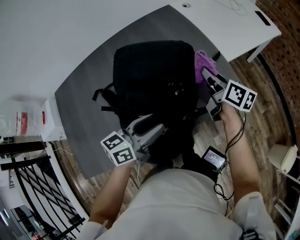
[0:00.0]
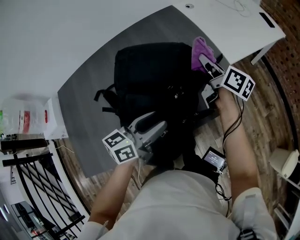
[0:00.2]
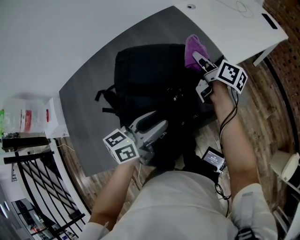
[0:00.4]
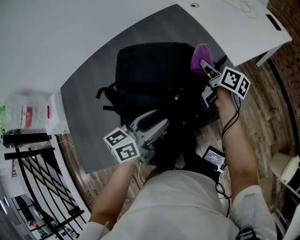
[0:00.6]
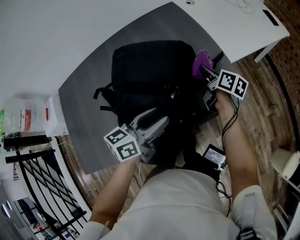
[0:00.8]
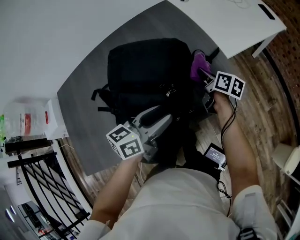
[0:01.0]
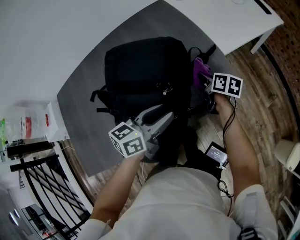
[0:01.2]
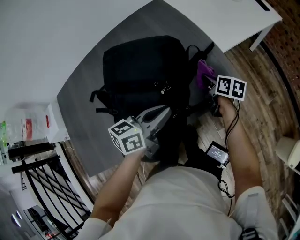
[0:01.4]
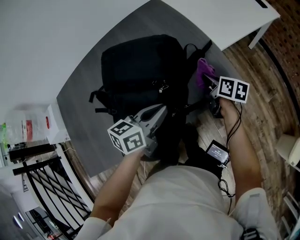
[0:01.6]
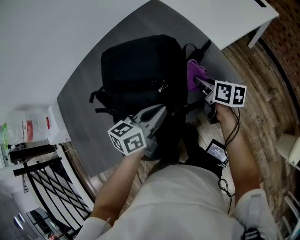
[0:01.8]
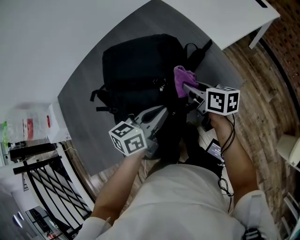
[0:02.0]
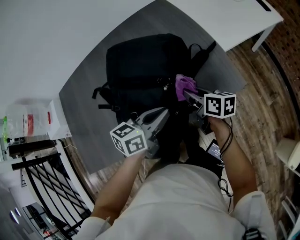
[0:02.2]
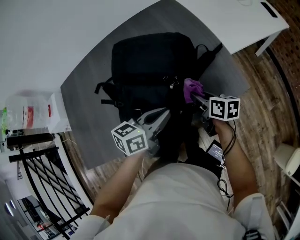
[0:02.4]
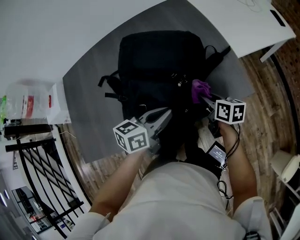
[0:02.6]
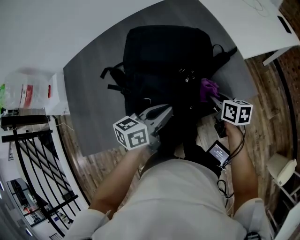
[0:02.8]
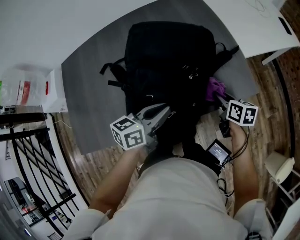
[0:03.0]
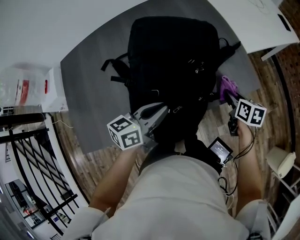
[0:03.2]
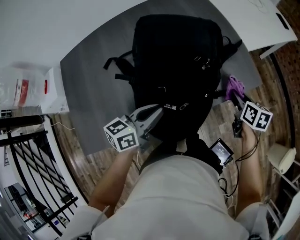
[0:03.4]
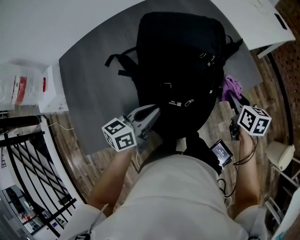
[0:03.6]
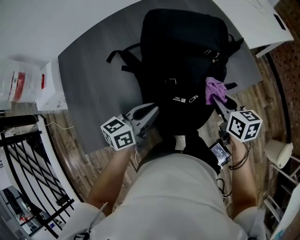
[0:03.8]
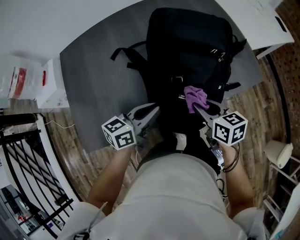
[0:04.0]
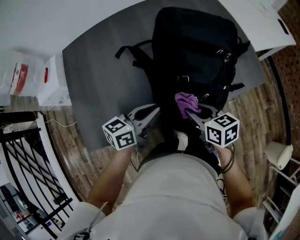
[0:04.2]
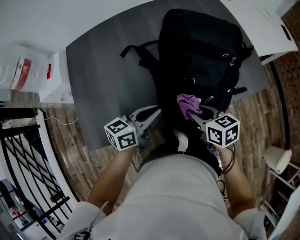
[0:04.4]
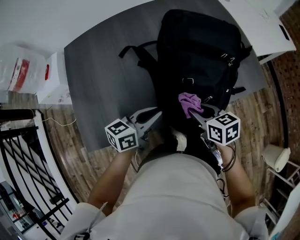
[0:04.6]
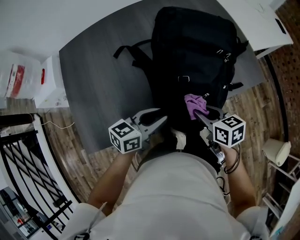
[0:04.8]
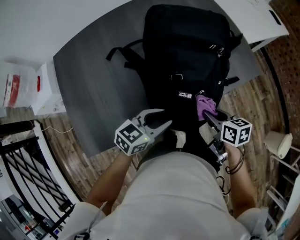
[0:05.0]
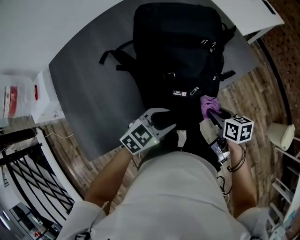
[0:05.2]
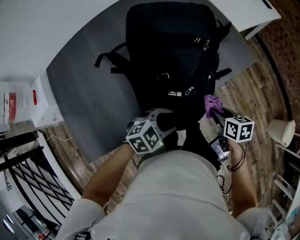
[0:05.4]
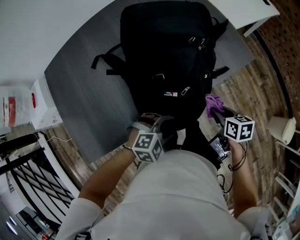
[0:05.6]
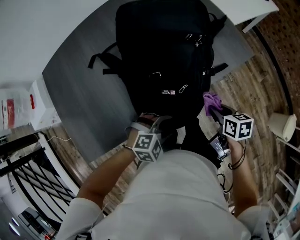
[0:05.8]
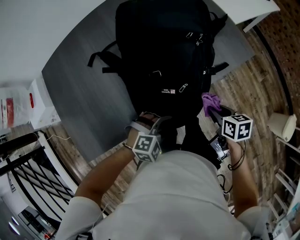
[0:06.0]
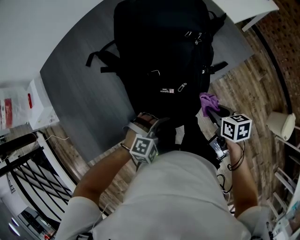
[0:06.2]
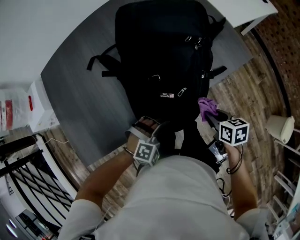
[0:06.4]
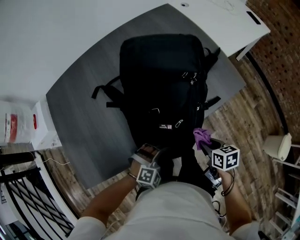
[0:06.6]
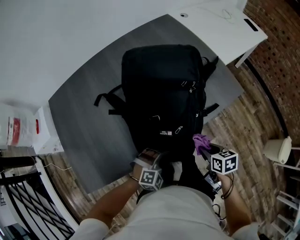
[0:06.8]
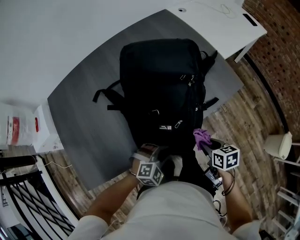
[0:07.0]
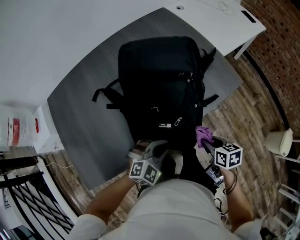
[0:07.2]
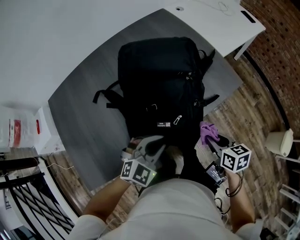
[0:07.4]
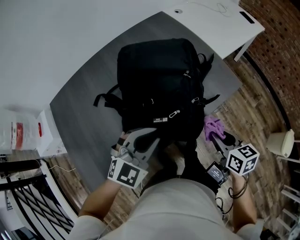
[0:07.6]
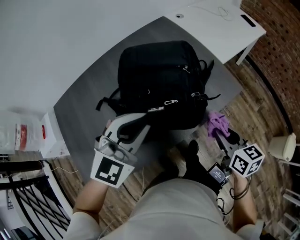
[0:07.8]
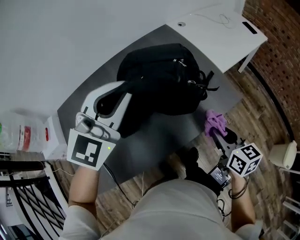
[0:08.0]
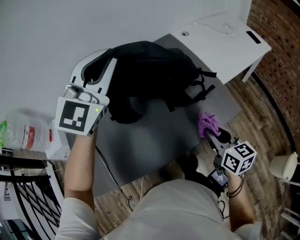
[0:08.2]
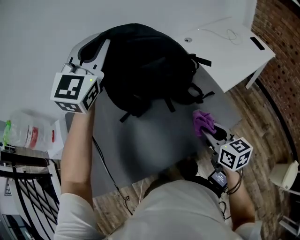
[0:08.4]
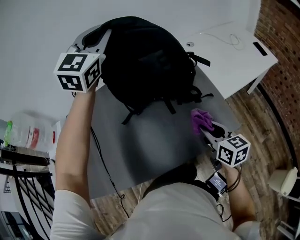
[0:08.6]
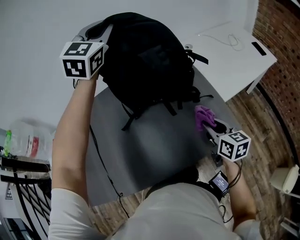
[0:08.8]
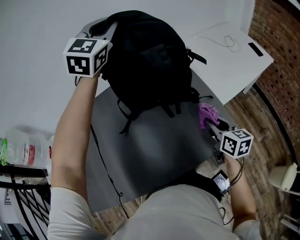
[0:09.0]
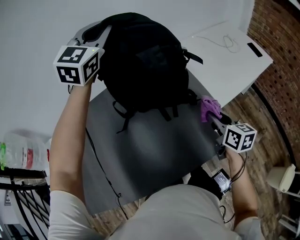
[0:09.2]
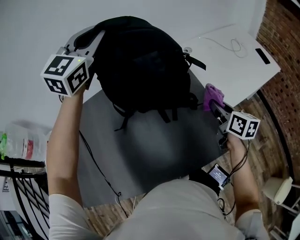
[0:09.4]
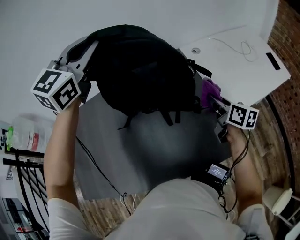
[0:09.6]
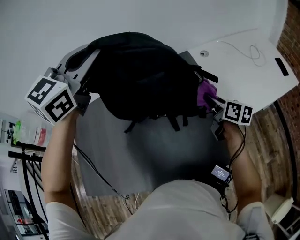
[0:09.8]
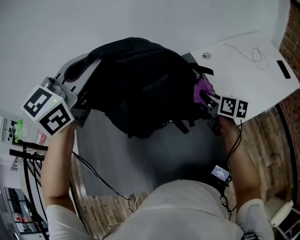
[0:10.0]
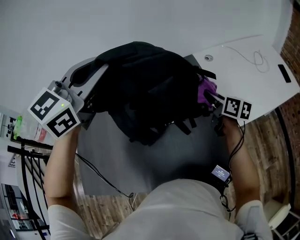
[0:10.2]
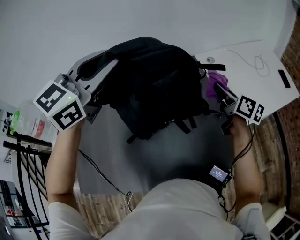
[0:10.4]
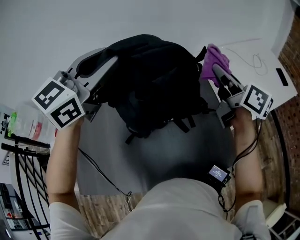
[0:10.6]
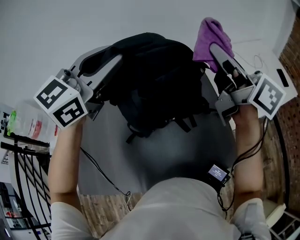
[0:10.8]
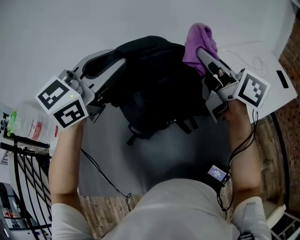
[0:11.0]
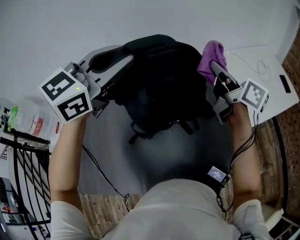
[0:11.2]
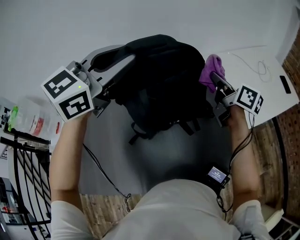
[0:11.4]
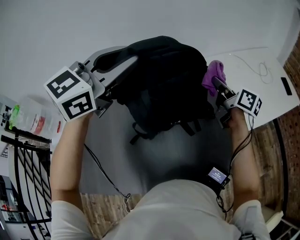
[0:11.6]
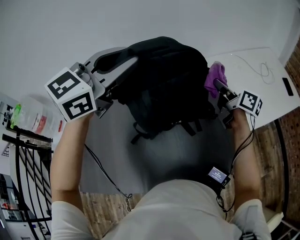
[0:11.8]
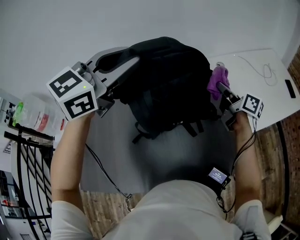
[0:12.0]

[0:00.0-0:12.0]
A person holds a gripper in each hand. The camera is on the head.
0:00.0 to 0:01.6: The left gripper is displaced to the right and forward by approximately 10 cm, and closes up; the right gripper is displaced downward and to the right by some 15 cm.
0:01.6 to 0:03.0: The left gripper moves to the left and backward, approximately 10 cm. Meanwhile the right gripper heads backward and to the left, covering about 10 cm.
0:03.0 to 0:04.4: Both grippers move to the left and backward, approximately 25 cm. The right gripper swivels approximately 20 degrees.
0:04.4 to 0:06.0: The left gripper changes place by approximately 20 cm, twists about 80 degrees clockwise, seen from behind, and opens up; the right gripper shifts by approximately 20 cm, and swivels about 30 degrees.
0:06.0 to 0:07.6: The right gripper travels upward by roughly 10 cm. The left gripper shifts about 25 cm upward and forward, changes its angle by some 40 degrees, and closes up.
0:07.6 to 0:09.0: The left gripper moves forward and upward, roughly 60 cm, and turns by about 30 degrees, while the right gripper is displaced forward by about 25 cm.
0:09.0 to 0:10.4: The right gripper shifts roughly 20 cm forward, and turns by roughly 20 degrees. The left gripper travels backward by roughly 10 cm.
0:10.4 to 0:12.0: The right gripper travels upward and back again, about 20 cm each way.

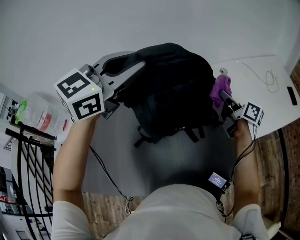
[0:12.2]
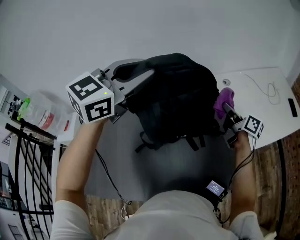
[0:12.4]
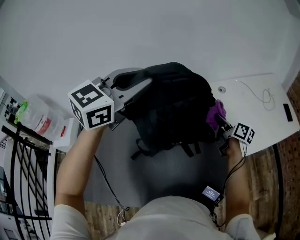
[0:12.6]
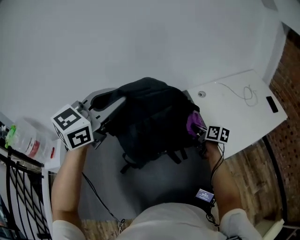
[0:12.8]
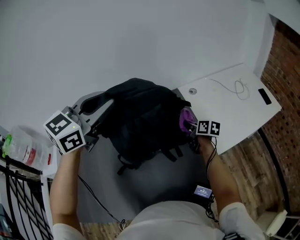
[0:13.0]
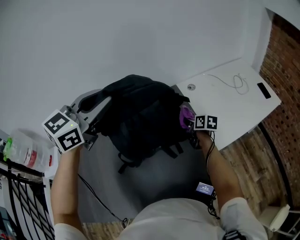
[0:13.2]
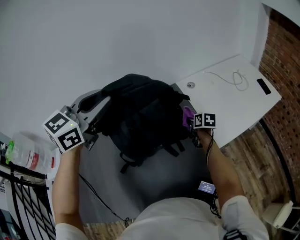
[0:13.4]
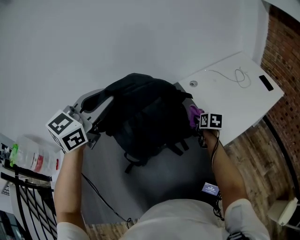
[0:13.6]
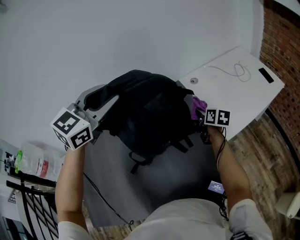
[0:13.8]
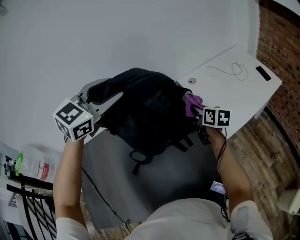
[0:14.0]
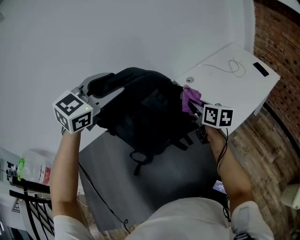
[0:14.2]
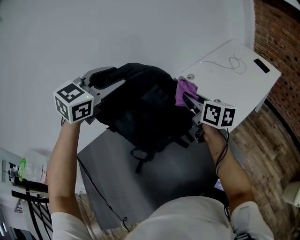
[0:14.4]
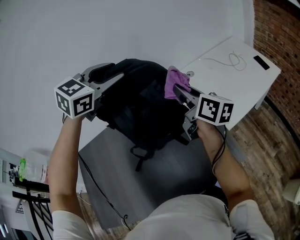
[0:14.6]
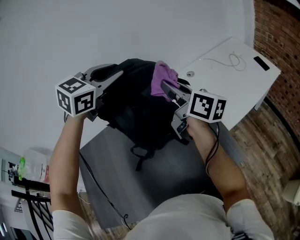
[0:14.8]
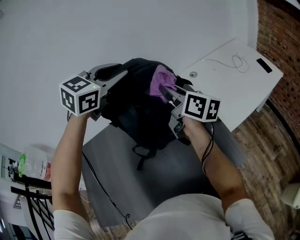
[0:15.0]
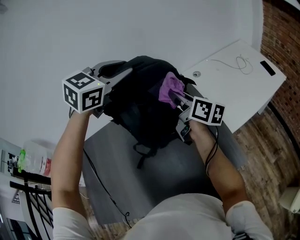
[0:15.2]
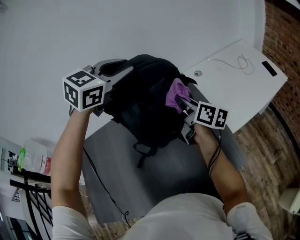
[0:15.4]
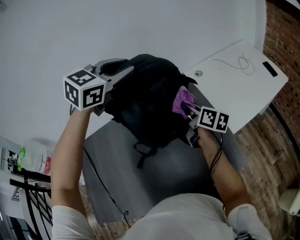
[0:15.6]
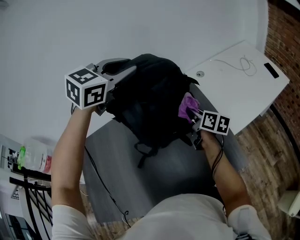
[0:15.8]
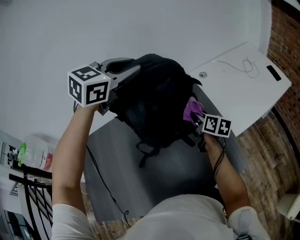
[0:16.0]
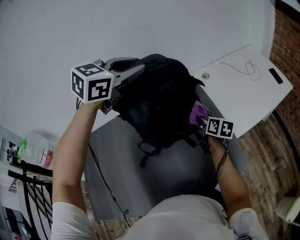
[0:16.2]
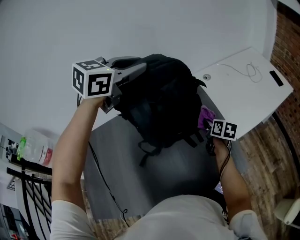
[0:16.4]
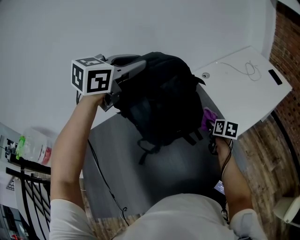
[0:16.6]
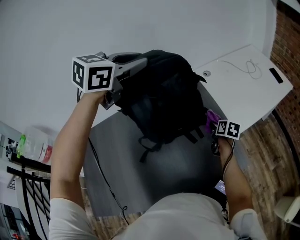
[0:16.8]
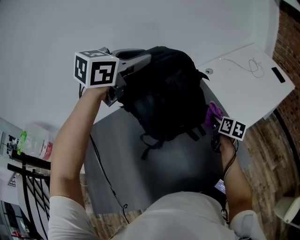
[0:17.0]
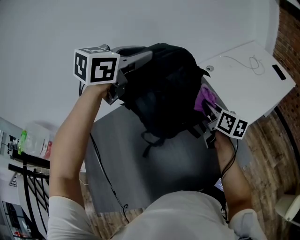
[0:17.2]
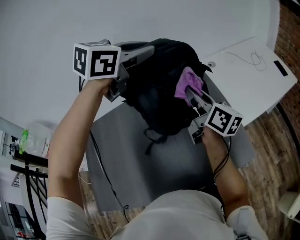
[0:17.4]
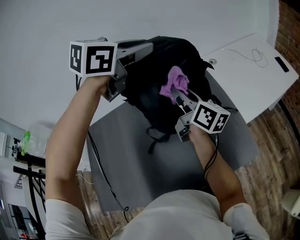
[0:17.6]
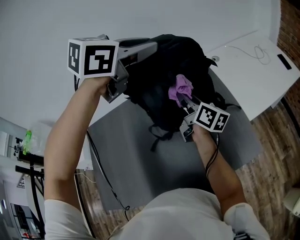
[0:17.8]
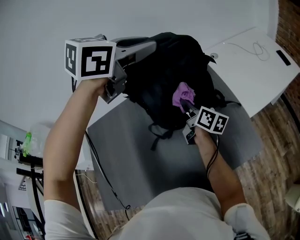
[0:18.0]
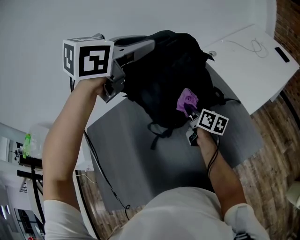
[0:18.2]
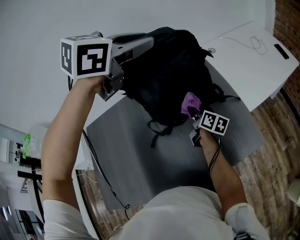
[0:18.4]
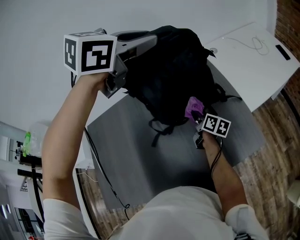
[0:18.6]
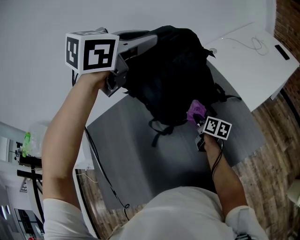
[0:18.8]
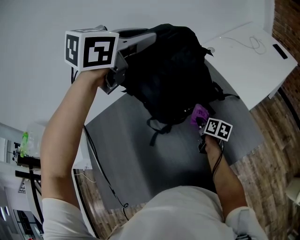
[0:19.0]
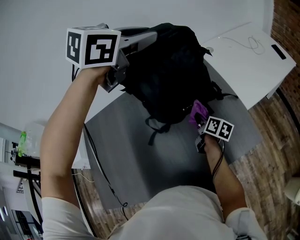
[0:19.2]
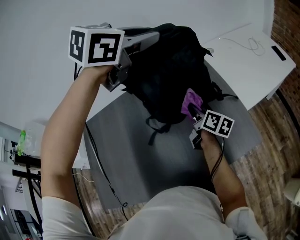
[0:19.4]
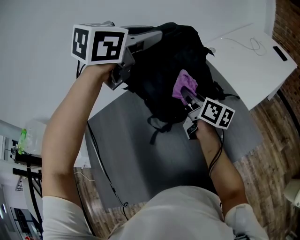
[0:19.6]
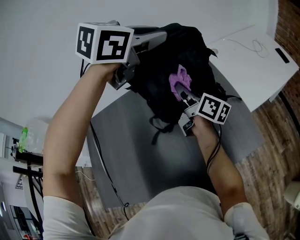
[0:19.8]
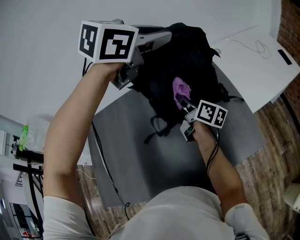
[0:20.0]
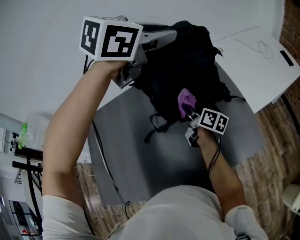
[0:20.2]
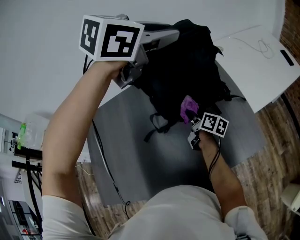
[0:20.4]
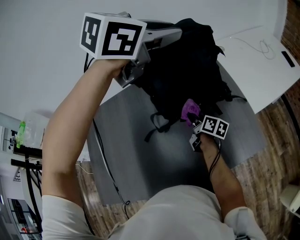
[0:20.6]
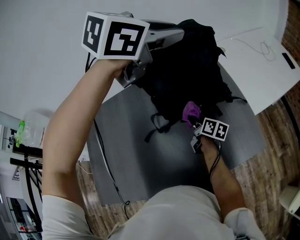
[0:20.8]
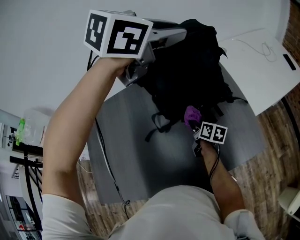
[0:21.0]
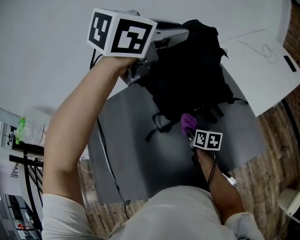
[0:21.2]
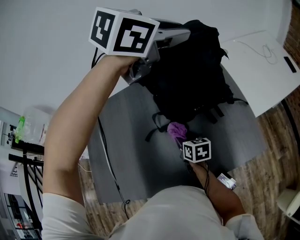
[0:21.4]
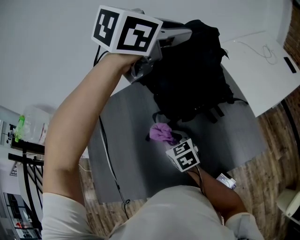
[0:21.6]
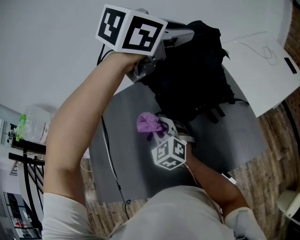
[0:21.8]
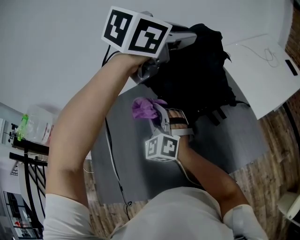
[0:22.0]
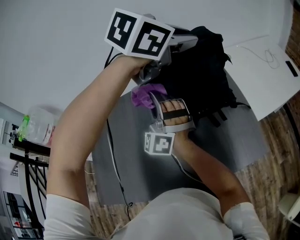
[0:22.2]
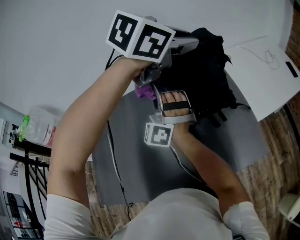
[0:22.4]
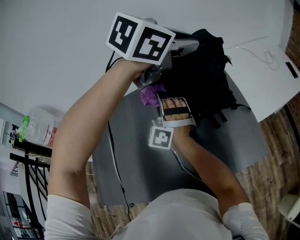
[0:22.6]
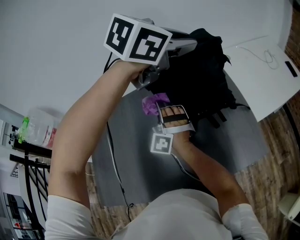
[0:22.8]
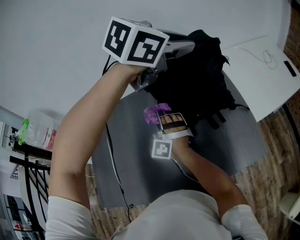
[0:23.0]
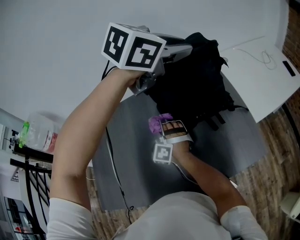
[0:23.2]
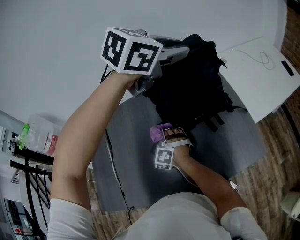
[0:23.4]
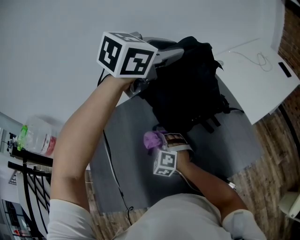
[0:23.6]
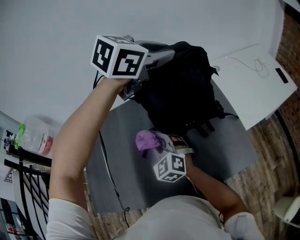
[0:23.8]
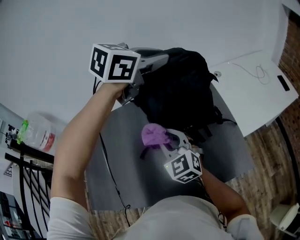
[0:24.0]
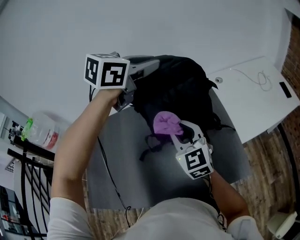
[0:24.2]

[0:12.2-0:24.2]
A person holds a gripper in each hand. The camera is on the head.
0:12.2 to 0:13.8: The right gripper moves downward, some 10 cm, and changes its angle by roughly 40 degrees.
0:13.8 to 0:15.2: The left gripper travels forward by roughly 5 cm; the right gripper is displaced upward and to the left by some 20 cm, and points its fingers approximately 30 degrees further upward.
0:15.2 to 0:16.6: The right gripper goes roughly 25 cm downward and to the right, and tips its fingers downward by about 40 degrees.
0:16.6 to 0:18.2: The right gripper travels to the left by roughly 15 cm, reaches approximately 25 cm upward, then returns, and rotates about 30 degrees.
0:18.2 to 0:19.8: The right gripper travels upward by approximately 10 cm.
0:19.8 to 0:21.2: The right gripper goes approximately 25 cm downward and backward, and points its fingers approximately 40 degrees further downward.
0:21.2 to 0:22.6: The right gripper is displaced upward and to the left by roughly 30 cm, and rolls counterclockwise, seen from behind, by some 100 degrees.
0:22.6 to 0:24.2: The left gripper ends up some 5 cm from where it was. Meanwhile the right gripper moves to the right, roughly 20 cm, moves approximately 15 cm downward and comes back, and rolls clockwise, seen from behind, by about 50 degrees.
